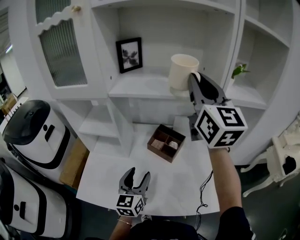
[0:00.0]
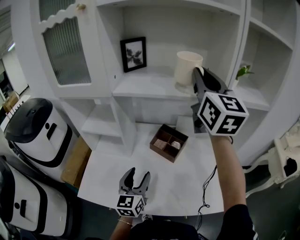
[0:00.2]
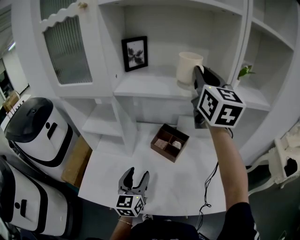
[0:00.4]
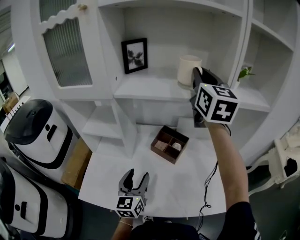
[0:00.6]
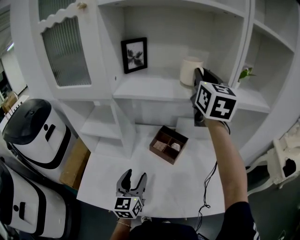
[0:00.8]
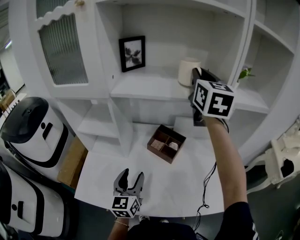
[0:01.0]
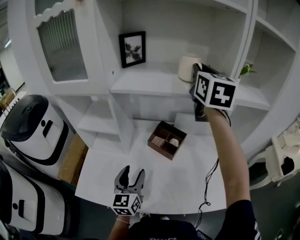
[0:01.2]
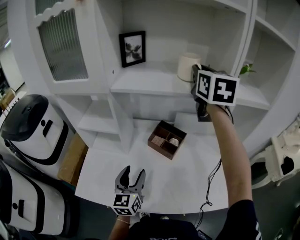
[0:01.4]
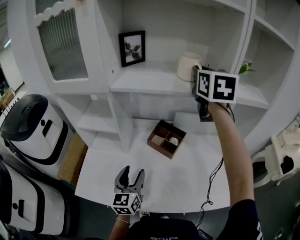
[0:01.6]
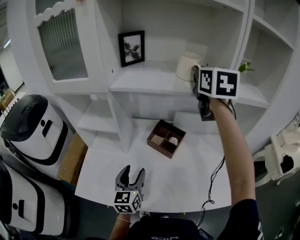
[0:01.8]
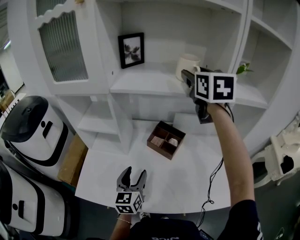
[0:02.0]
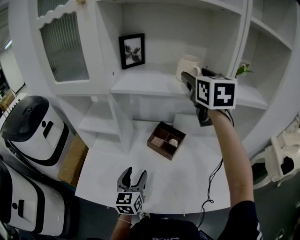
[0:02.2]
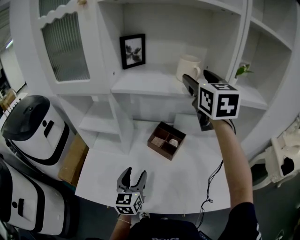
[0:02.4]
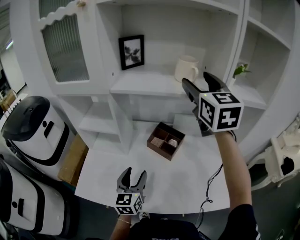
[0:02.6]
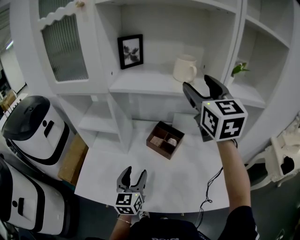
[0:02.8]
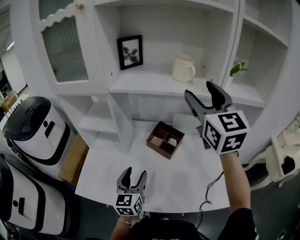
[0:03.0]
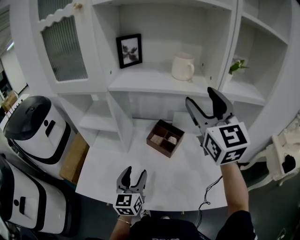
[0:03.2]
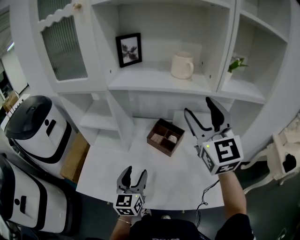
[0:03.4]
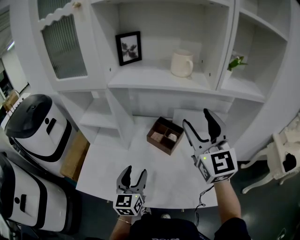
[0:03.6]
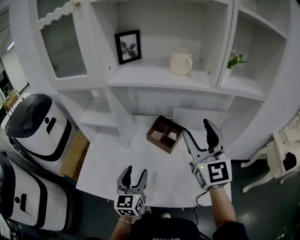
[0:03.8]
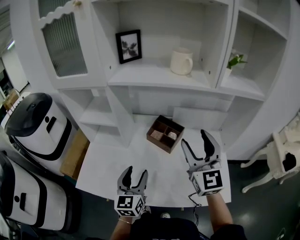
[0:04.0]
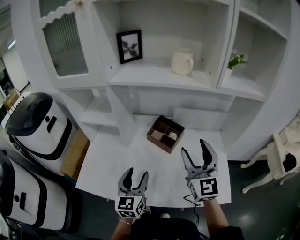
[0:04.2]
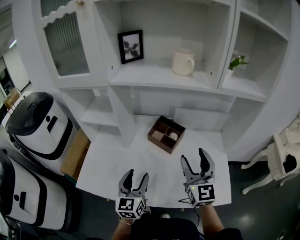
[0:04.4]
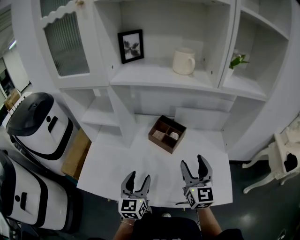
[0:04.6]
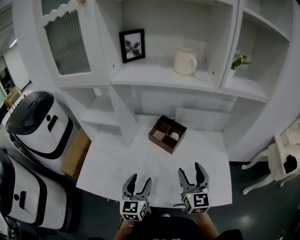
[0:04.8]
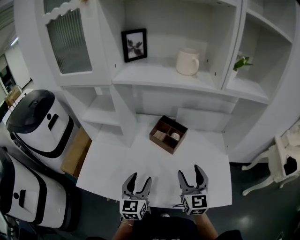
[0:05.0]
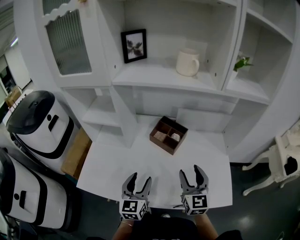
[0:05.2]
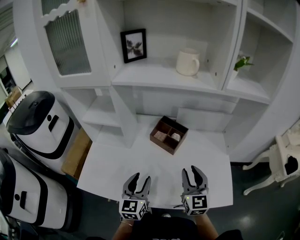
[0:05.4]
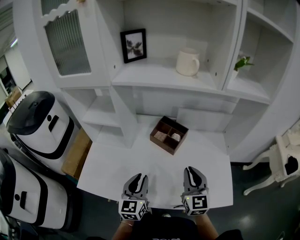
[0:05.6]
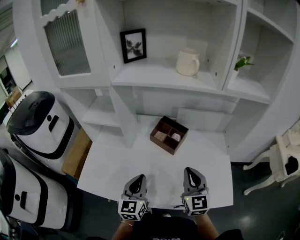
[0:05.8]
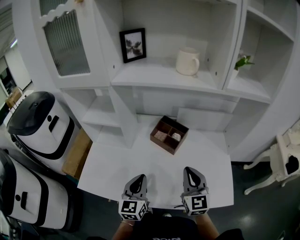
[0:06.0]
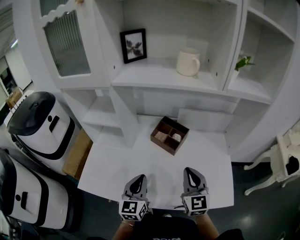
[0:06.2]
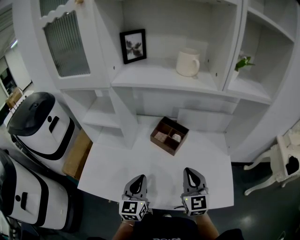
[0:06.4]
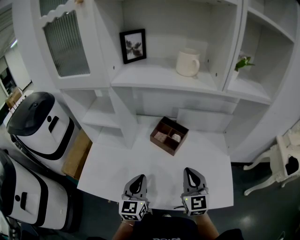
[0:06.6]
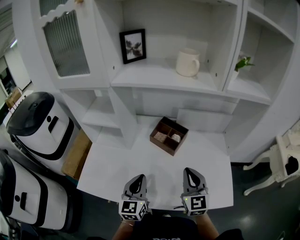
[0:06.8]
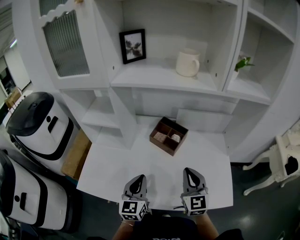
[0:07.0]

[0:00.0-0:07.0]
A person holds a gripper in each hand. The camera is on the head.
0:00.0 to 0:01.4: The right gripper goes approximately 10 cm forward, and rotates roughly 20 degrees.
0:01.4 to 0:02.8: The right gripper moves backward, roughly 10 cm, and opens up.
0:02.8 to 0:04.2: The right gripper goes approximately 25 cm downward and backward.
0:04.2 to 0:05.6: The left gripper closes. Meanwhile the right gripper heads downward, covering roughly 10 cm, and closes.
0:05.6 to 0:07.0: The two grippers keep their place.

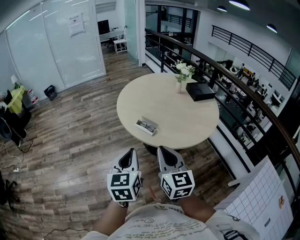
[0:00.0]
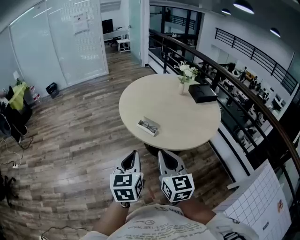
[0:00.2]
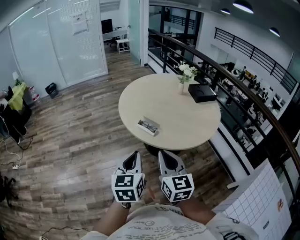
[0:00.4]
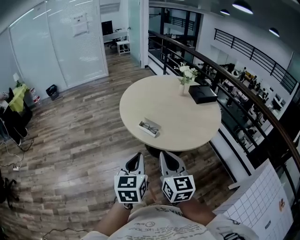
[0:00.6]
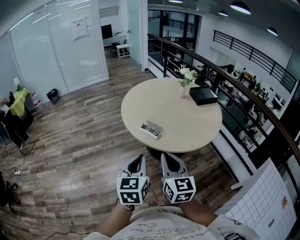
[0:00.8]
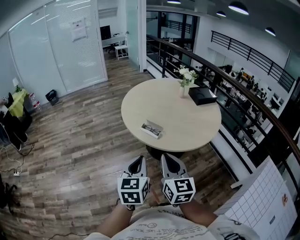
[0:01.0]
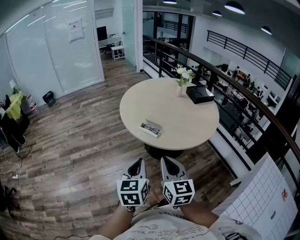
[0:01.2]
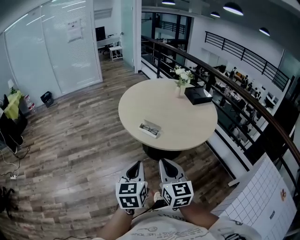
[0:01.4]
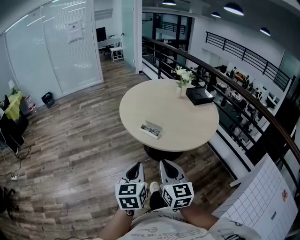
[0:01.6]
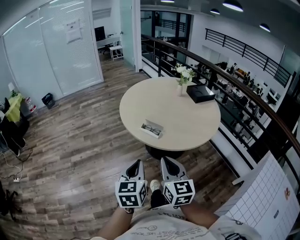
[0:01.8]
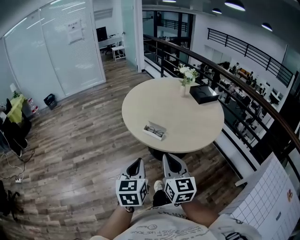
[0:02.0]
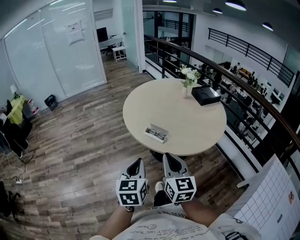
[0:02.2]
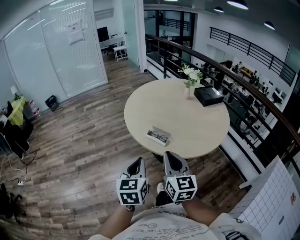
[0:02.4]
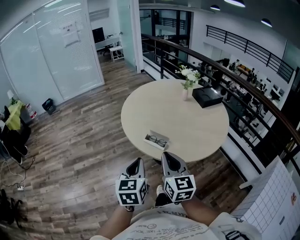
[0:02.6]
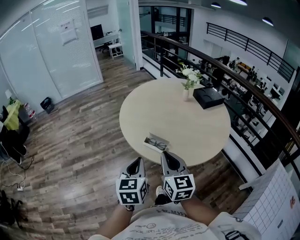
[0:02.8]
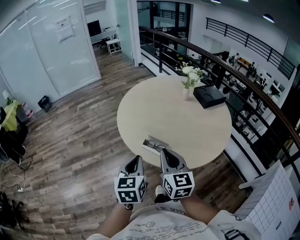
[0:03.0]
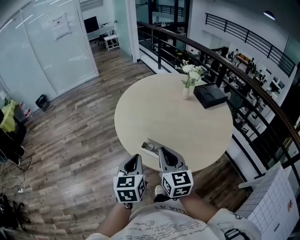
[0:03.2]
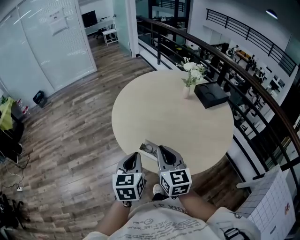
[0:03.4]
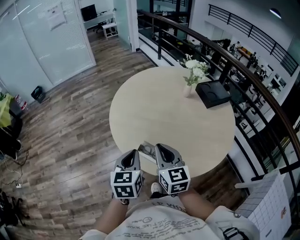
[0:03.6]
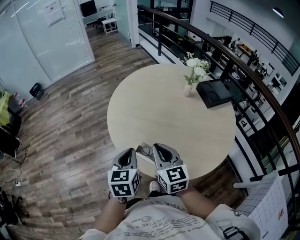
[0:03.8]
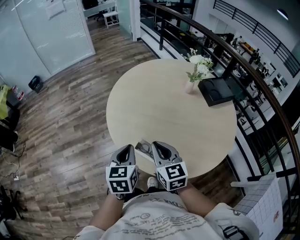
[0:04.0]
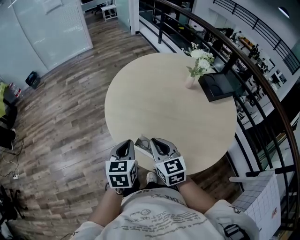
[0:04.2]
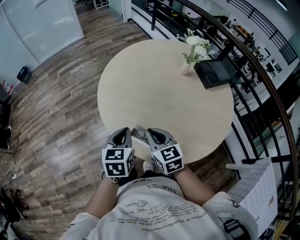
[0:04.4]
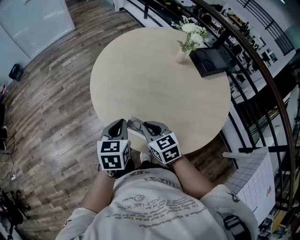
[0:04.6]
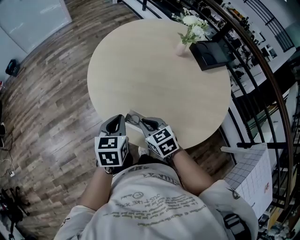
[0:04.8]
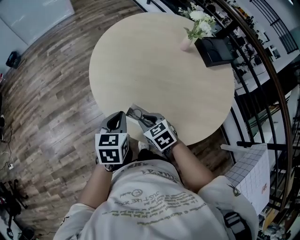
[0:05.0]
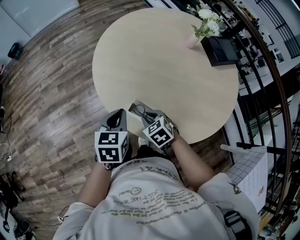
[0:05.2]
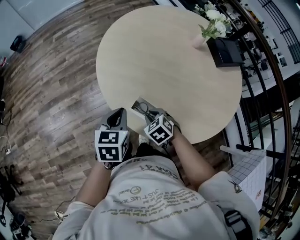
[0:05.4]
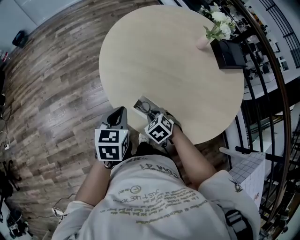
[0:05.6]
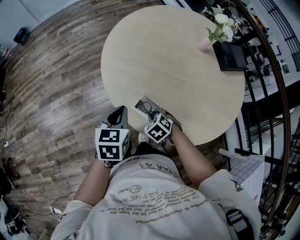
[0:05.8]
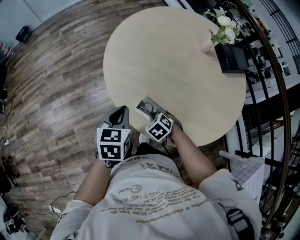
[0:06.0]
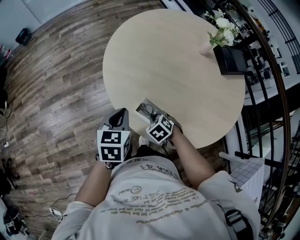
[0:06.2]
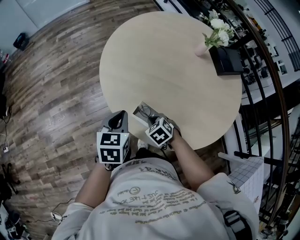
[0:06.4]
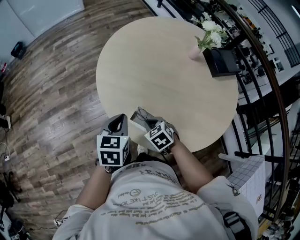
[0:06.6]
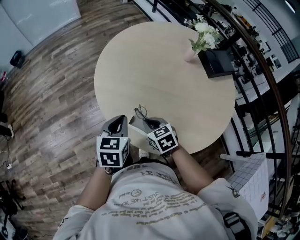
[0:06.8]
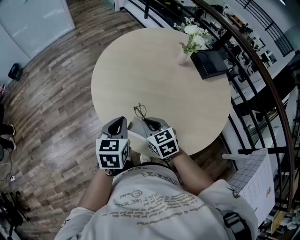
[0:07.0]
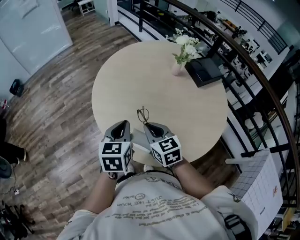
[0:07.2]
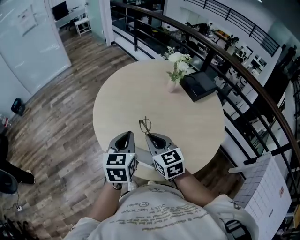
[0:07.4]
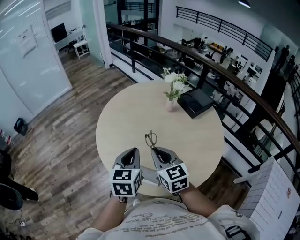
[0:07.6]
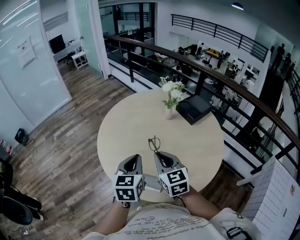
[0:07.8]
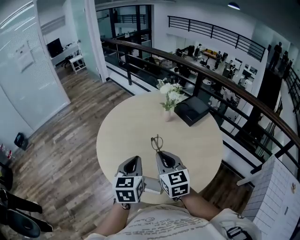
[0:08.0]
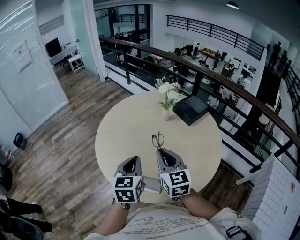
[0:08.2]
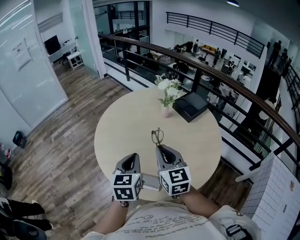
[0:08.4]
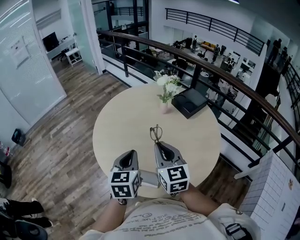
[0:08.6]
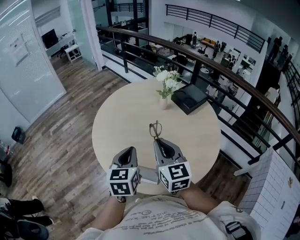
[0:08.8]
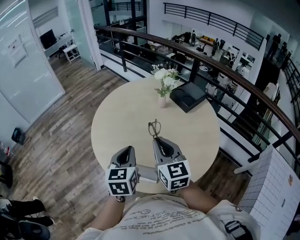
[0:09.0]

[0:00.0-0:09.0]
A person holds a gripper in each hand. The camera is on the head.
0:00.0 to 0:01.6: The left gripper is displaced downward by about 5 cm. The right gripper is displaced to the left by some 5 cm.
0:01.6 to 0:03.0: Both grippers move forward, approximately 20 cm.
0:03.0 to 0:04.4: The left gripper travels forward by approximately 20 cm. The right gripper moves forward and downward, roughly 20 cm, and swivels about 20 degrees.
0:04.4 to 0:06.0: The right gripper shifts about 20 cm downward, and points its fingers approximately 40 degrees further downward. Meanwhile the left gripper shifts roughly 5 cm downward.
0:06.0 to 0:07.6: The left gripper shifts approximately 20 cm upward and to the right, and changes its angle by approximately 20 degrees. Meanwhile the right gripper goes about 30 cm upward, and tips its fingers upward by approximately 50 degrees.
0:07.6 to 0:09.0: The right gripper shifts roughly 5 cm upward.

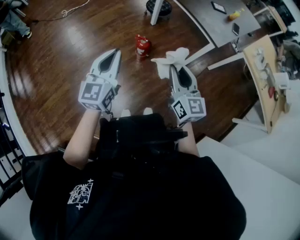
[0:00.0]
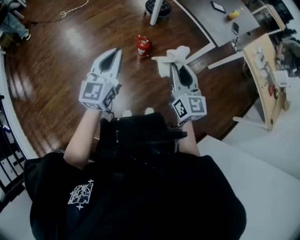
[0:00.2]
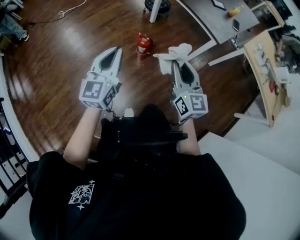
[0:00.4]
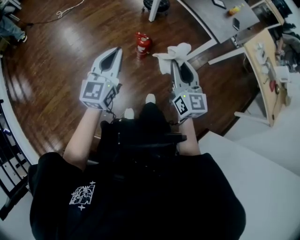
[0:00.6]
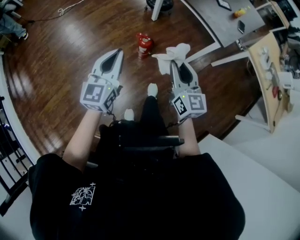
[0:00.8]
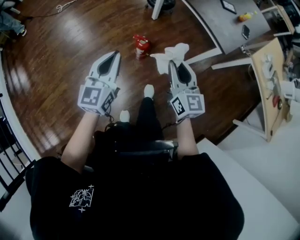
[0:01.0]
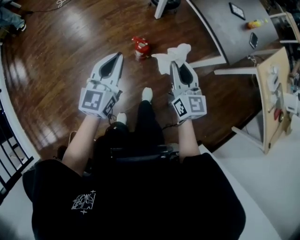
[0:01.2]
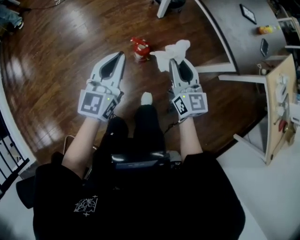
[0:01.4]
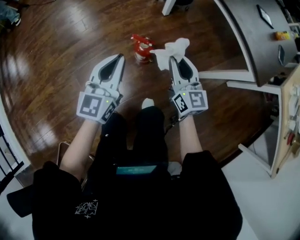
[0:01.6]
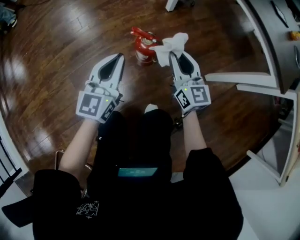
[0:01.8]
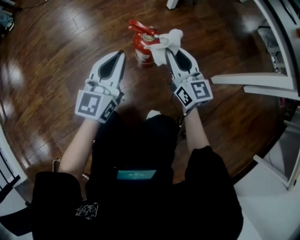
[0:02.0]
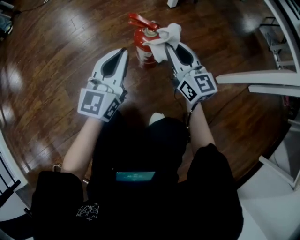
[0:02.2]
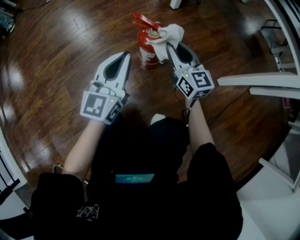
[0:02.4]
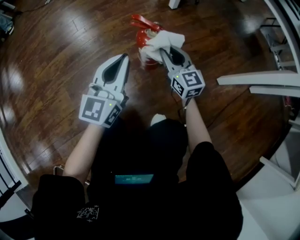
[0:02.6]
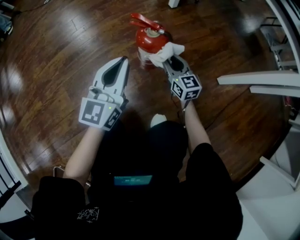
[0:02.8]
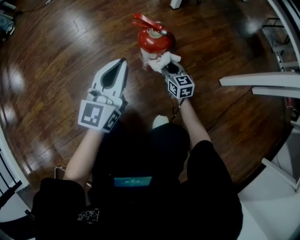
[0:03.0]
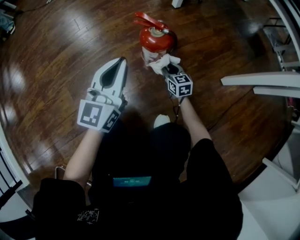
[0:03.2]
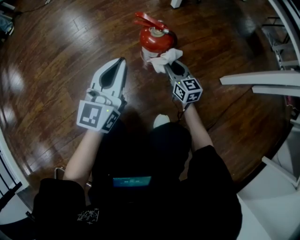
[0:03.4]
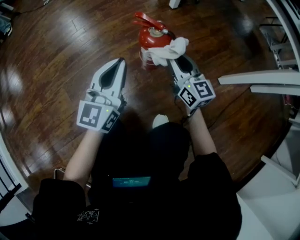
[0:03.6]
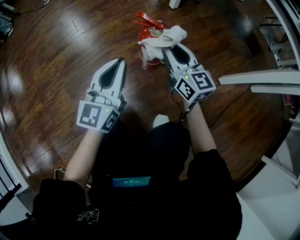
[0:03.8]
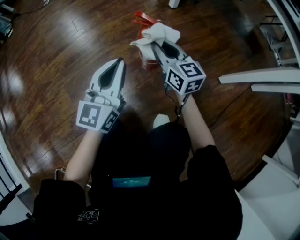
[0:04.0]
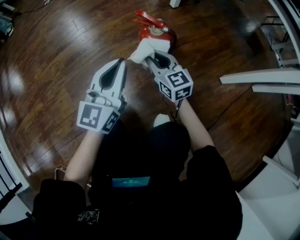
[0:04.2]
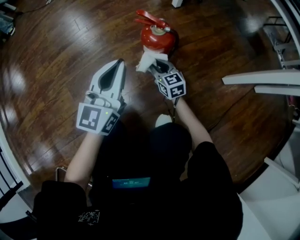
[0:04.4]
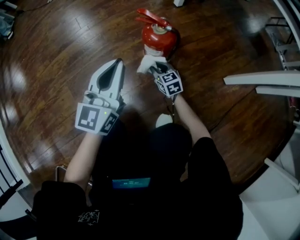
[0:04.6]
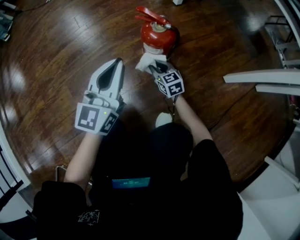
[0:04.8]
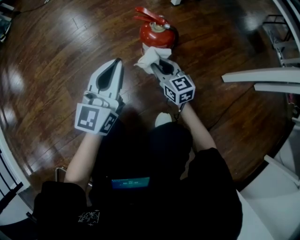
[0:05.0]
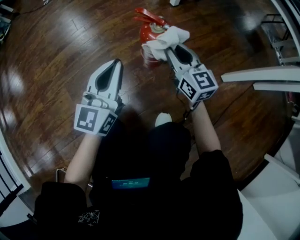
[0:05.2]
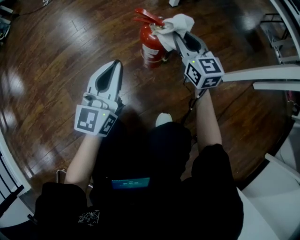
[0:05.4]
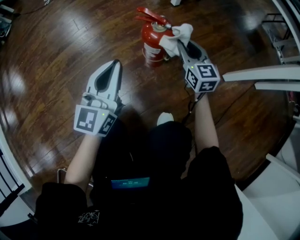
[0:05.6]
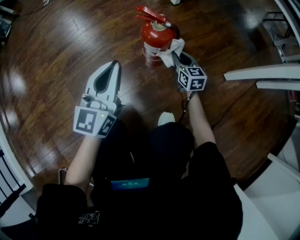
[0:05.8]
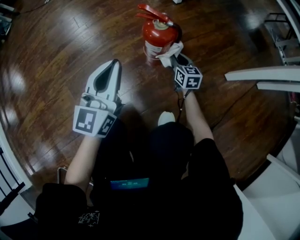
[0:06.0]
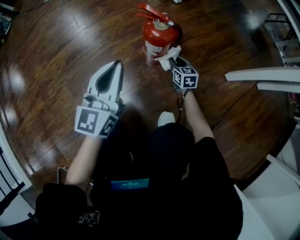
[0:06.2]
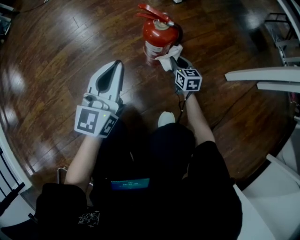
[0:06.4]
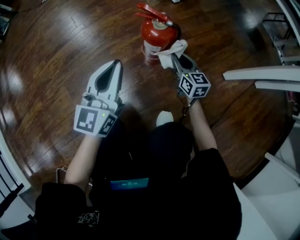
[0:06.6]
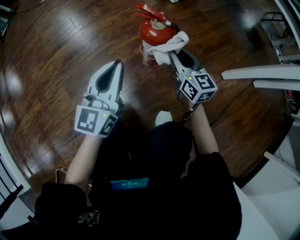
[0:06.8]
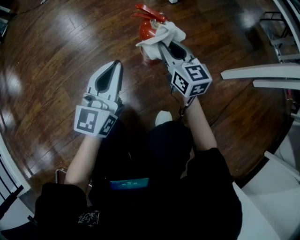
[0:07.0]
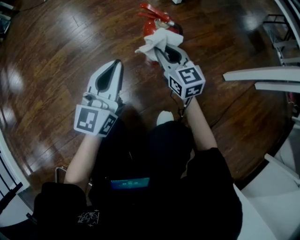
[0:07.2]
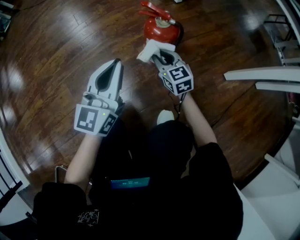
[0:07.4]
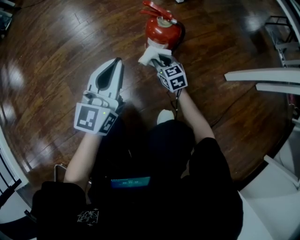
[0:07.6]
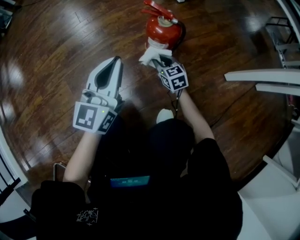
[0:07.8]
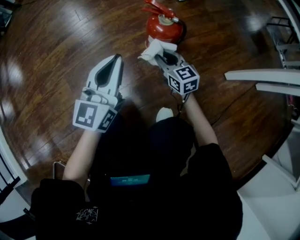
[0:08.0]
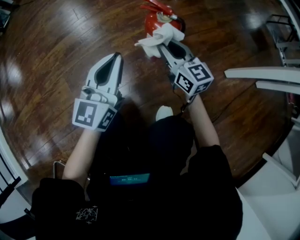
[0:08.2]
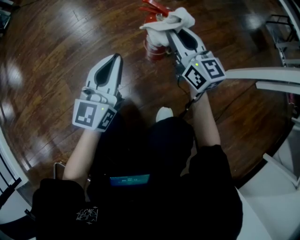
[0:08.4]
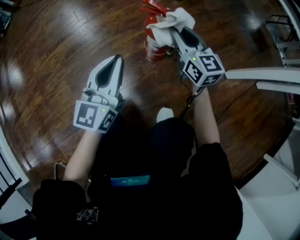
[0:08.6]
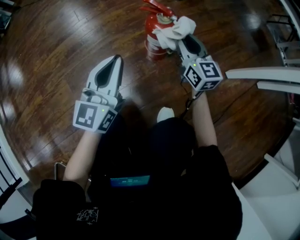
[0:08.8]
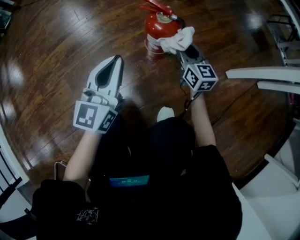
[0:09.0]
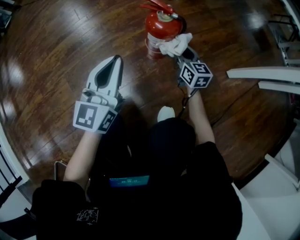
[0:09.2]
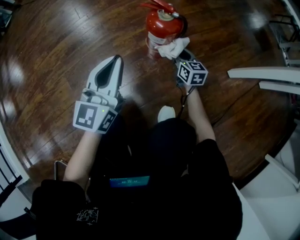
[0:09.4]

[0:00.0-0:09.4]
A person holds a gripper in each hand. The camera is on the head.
0:00.0 to 0:01.6: The two grippers go approximately 40 cm downward and forward.
0:01.6 to 0:03.2: The left gripper moves downward, some 25 cm; the right gripper shifts approximately 50 cm downward, and changes its angle by roughly 20 degrees.
0:03.2 to 0:04.8: The right gripper heads to the left, covering approximately 5 cm, and moves about 25 cm upward and comes back.
0:04.8 to 0:06.2: The right gripper moves to the right, about 10 cm, and reaches approximately 25 cm upward, then returns.
0:06.2 to 0:07.8: The right gripper travels to the left by approximately 10 cm, reaches approximately 25 cm upward, then returns, and changes its angle by about 20 degrees.
0:07.8 to 0:09.4: The right gripper shifts some 10 cm to the right, reaches roughly 25 cm upward, then returns, and turns by roughly 20 degrees.
